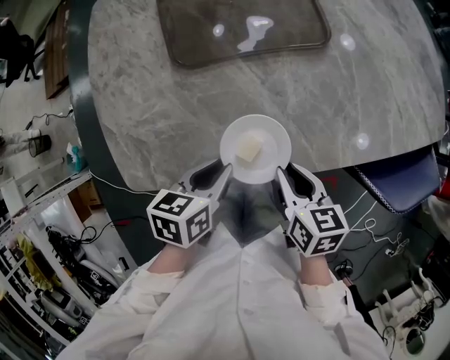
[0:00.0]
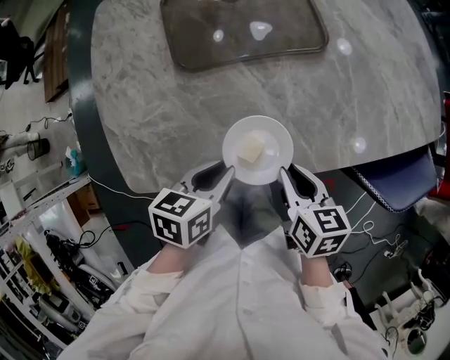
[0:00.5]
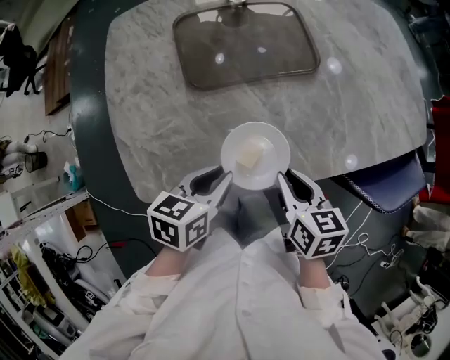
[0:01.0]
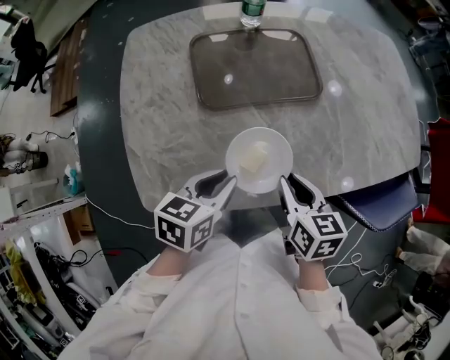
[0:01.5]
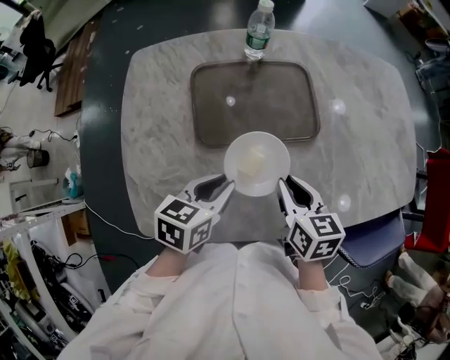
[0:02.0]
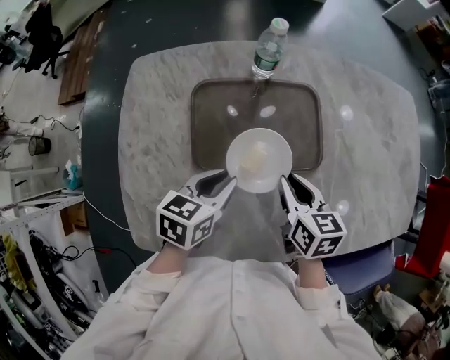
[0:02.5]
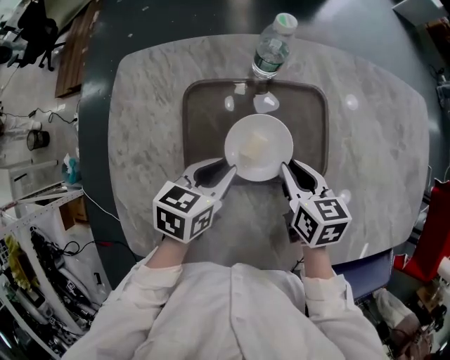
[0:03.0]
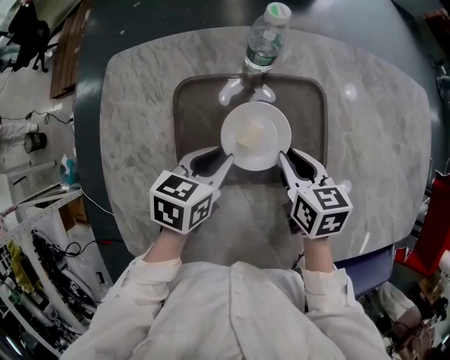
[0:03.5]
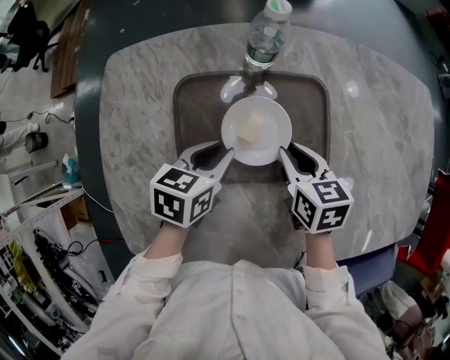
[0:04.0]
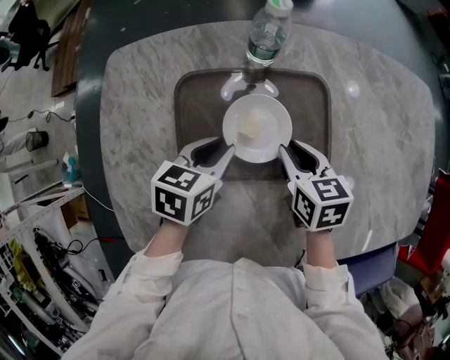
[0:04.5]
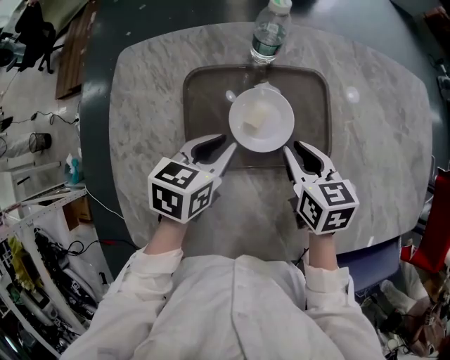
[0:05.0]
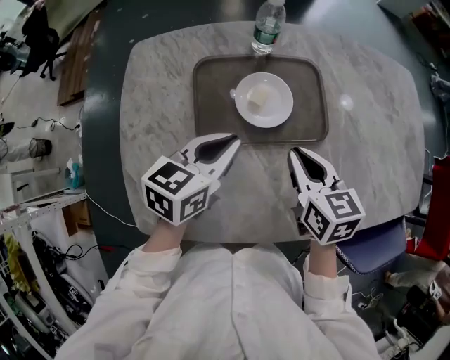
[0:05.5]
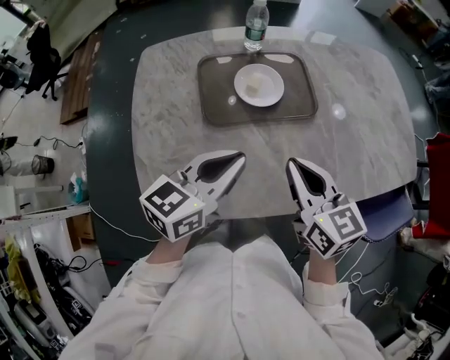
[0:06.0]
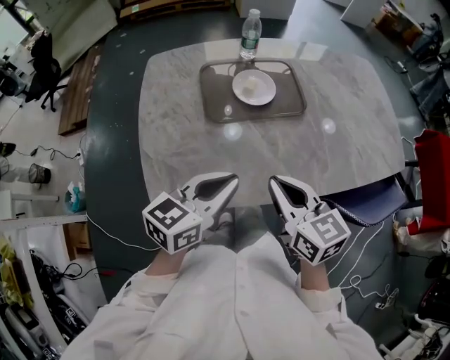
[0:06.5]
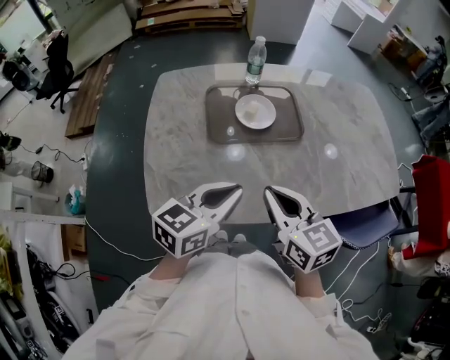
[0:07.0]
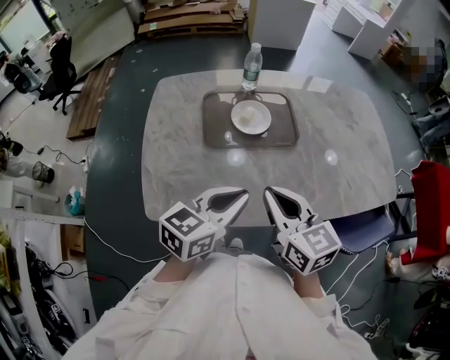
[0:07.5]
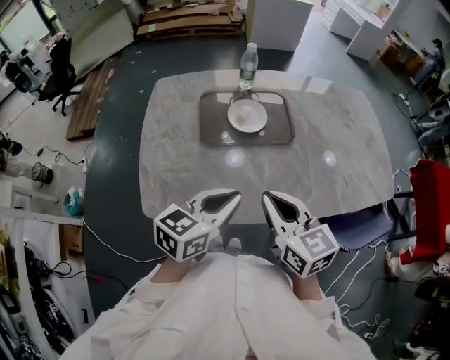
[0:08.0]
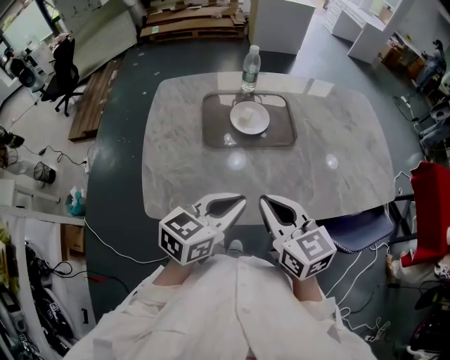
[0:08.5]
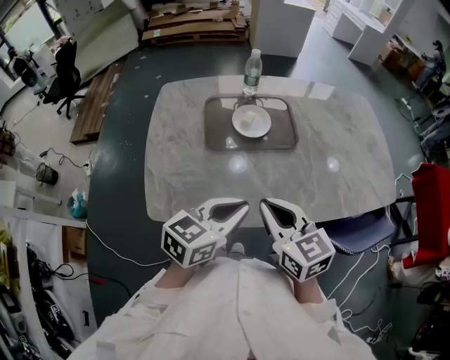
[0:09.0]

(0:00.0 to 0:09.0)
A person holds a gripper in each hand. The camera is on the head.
0:00.0 - 0:02.0: The grippers both shift forward and upward by some 15 cm.
0:02.0 - 0:04.5: The two grippers go about 20 cm forward.
0:04.5 - 0:07.0: The grippers both shift backward and upward by about 35 cm. The left gripper swivels approximately 30 degrees; the right gripper turns by approximately 30 degrees.
0:07.0 - 0:09.0: The left gripper shifts by some 5 cm.

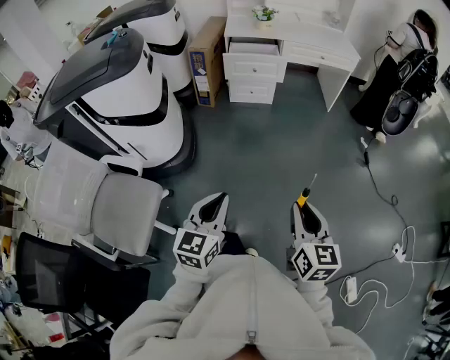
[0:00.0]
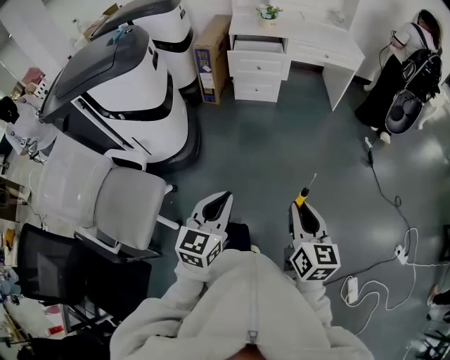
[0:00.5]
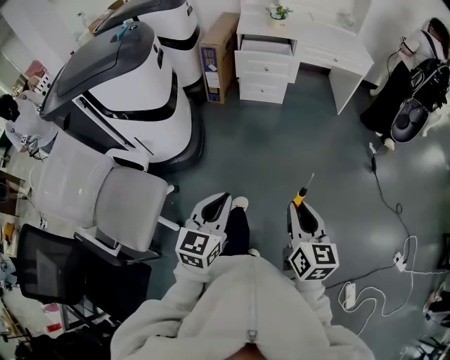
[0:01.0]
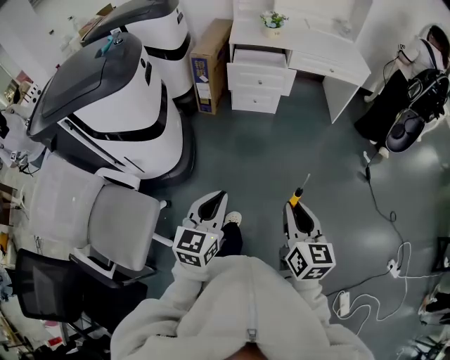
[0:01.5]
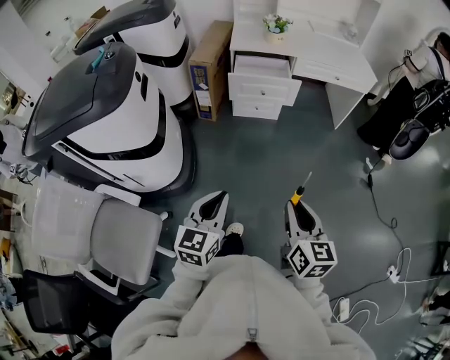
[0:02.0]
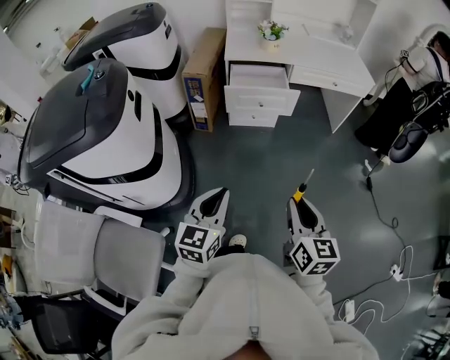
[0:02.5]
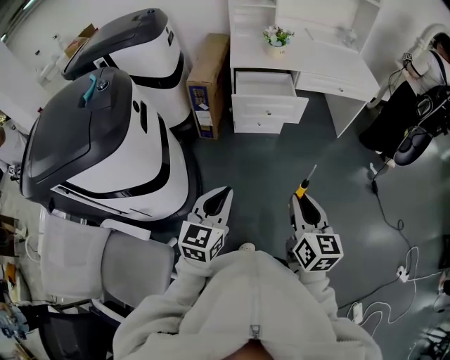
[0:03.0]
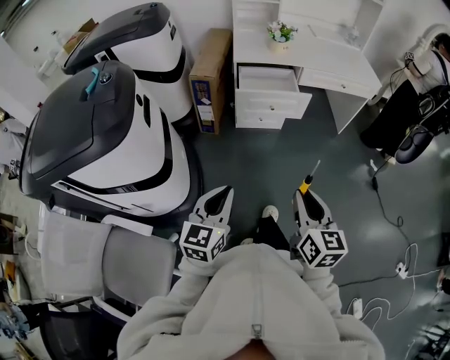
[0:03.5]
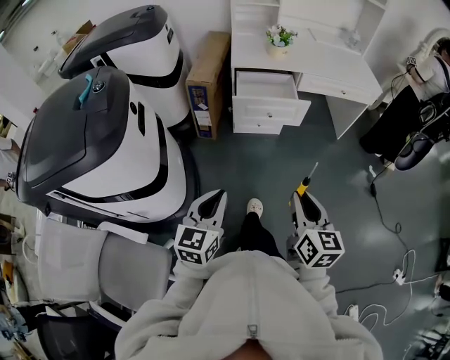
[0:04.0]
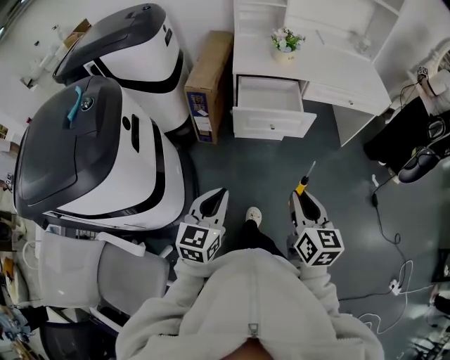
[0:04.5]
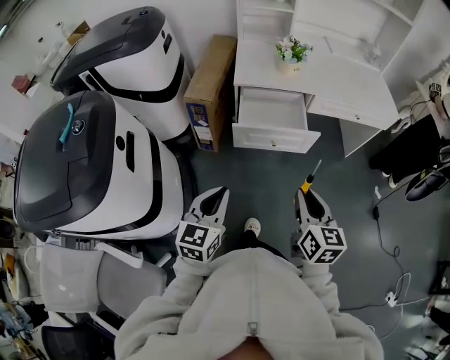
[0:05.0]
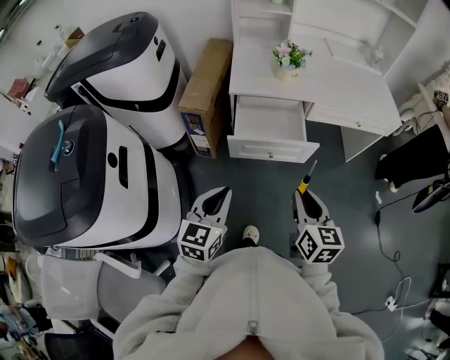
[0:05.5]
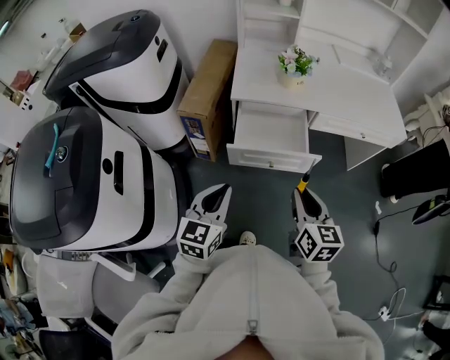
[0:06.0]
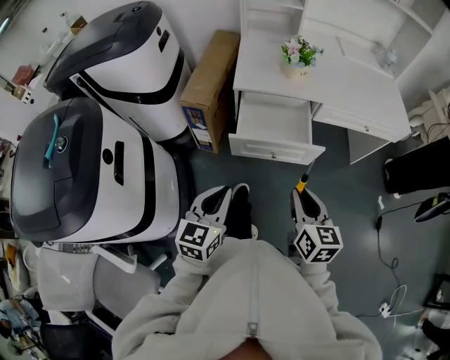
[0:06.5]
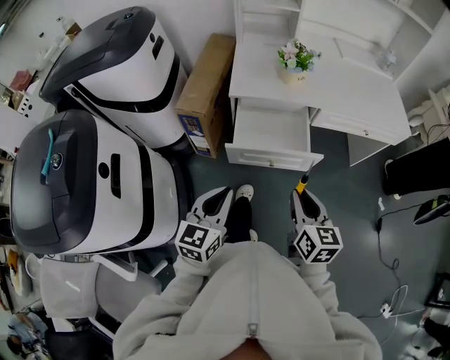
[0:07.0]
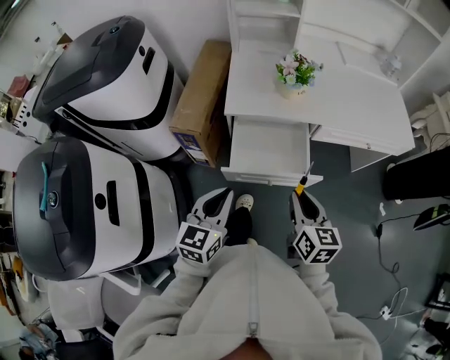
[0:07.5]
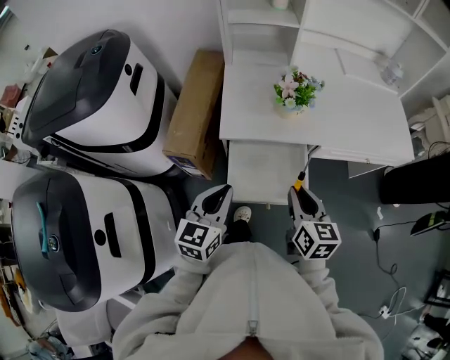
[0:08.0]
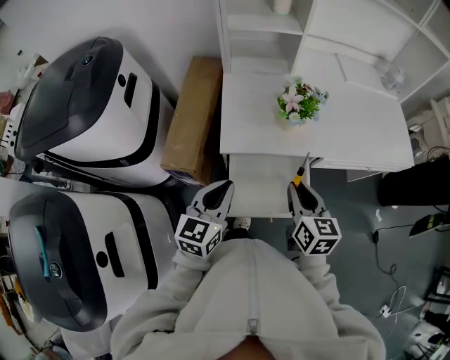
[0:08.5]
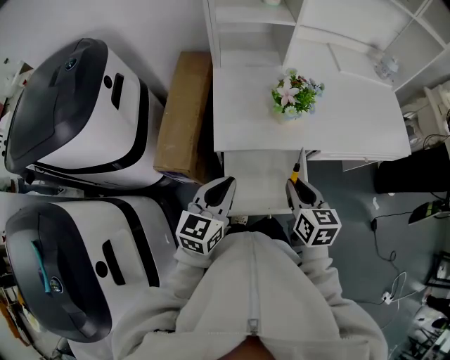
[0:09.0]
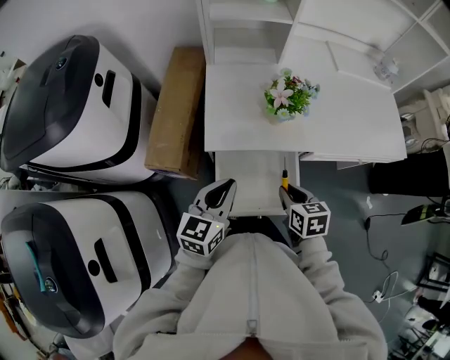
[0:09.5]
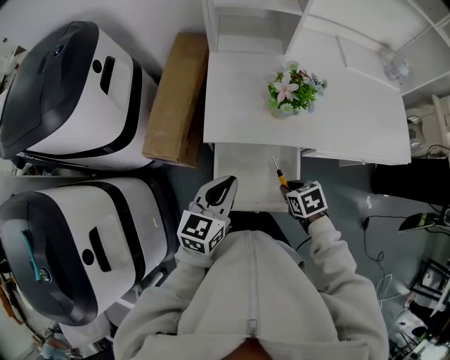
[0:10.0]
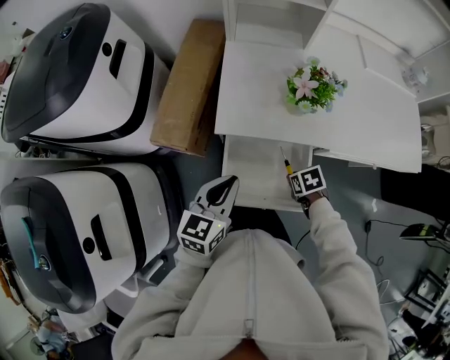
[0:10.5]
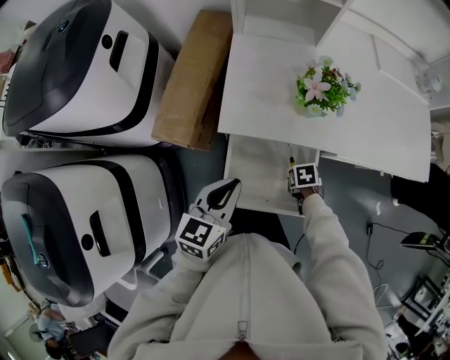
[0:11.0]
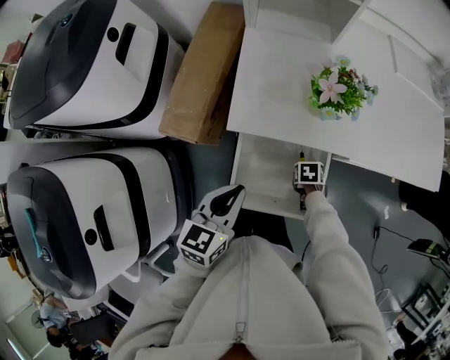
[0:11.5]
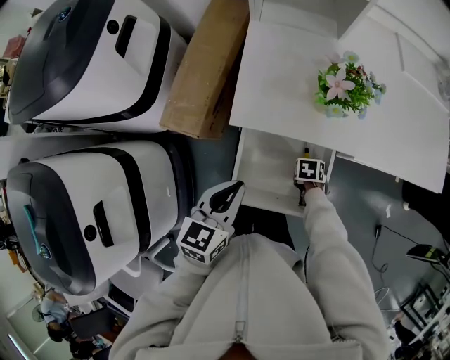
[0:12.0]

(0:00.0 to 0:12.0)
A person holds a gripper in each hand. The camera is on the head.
0:00.0 - 0:02.0: The two grippers go roughly 20 cm forward.
0:02.0 - 0:04.0: Both grippers travel together forward and to the left, about 15 cm.
0:04.0 - 0:06.0: Both grippers move forward, approximately 30 cm.
0:06.0 - 0:08.0: The grippers both shift forward by about 20 cm.
0:08.0 - 0:10.0: The right gripper goes some 15 cm downward, and points its fingers roughly 40 degrees further downward. The left gripper goes approximately 10 cm forward.
0:10.0 - 0:12.0: The right gripper shifts roughly 15 cm downward, and turns by roughly 30 degrees.

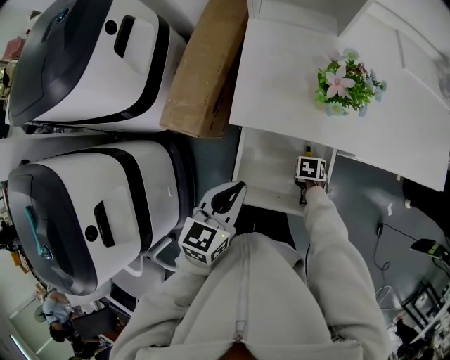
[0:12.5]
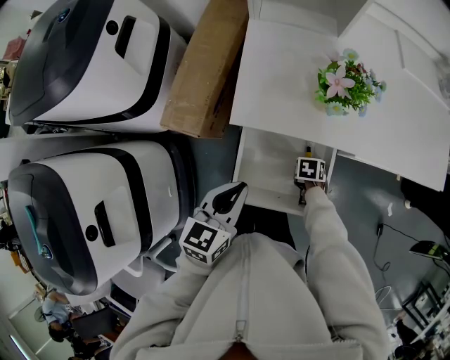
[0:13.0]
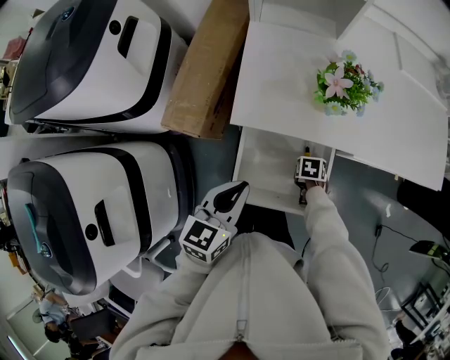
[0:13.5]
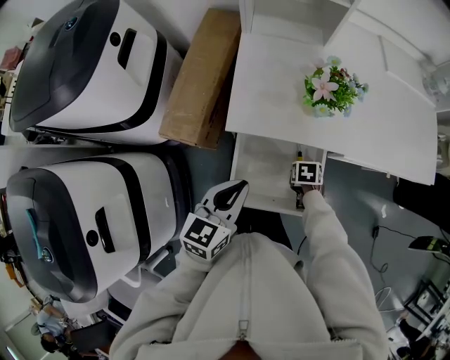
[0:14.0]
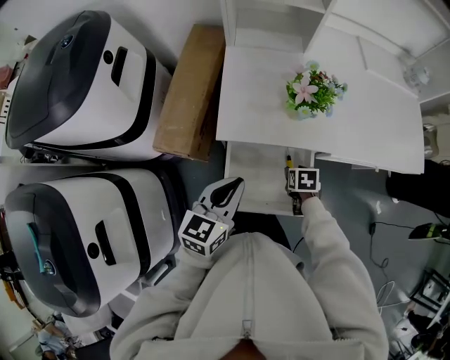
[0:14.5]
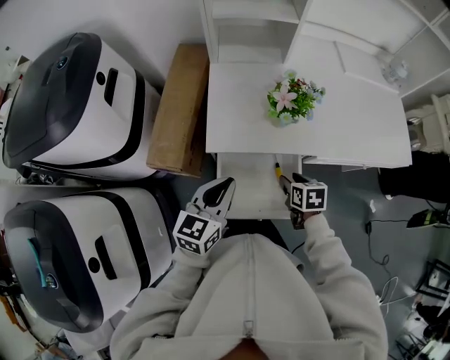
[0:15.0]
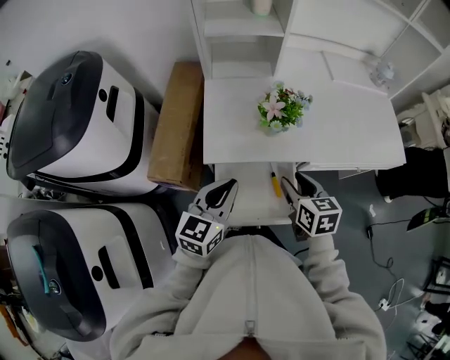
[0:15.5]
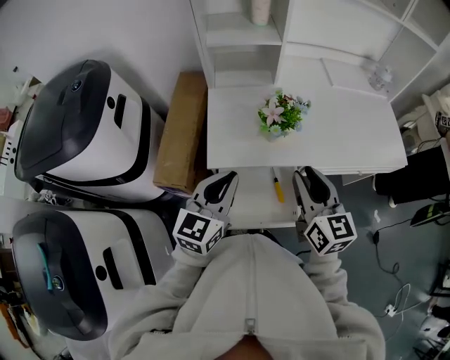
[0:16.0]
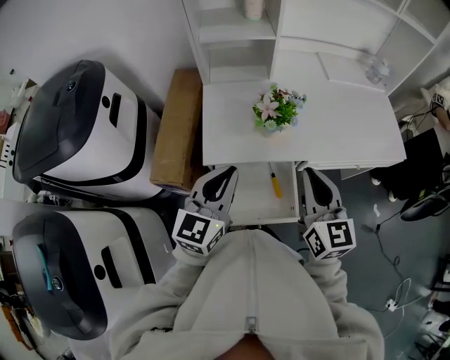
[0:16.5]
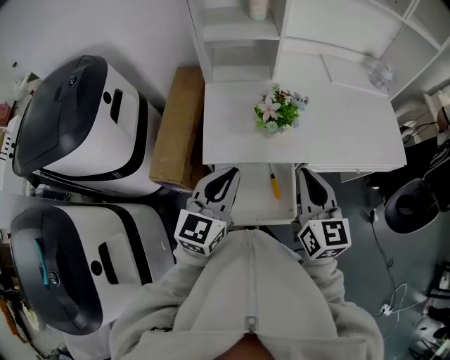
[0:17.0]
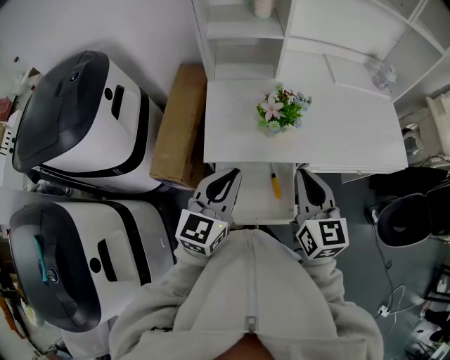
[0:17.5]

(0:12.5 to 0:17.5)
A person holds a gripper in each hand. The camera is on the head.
0:12.5 - 0:15.0: The left gripper travels upward by about 5 cm, while the right gripper is displaced upward by some 20 cm, turns by approximately 30 degrees, and opens up.
0:15.0 - 0:17.5: The left gripper moves upward, roughly 10 cm. The right gripper heads upward, covering some 25 cm, points its fingers roughly 40 degrees further upward, and closes its fingers.

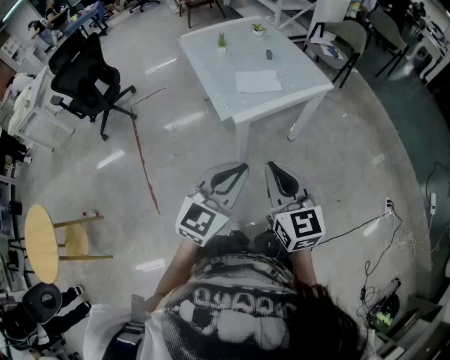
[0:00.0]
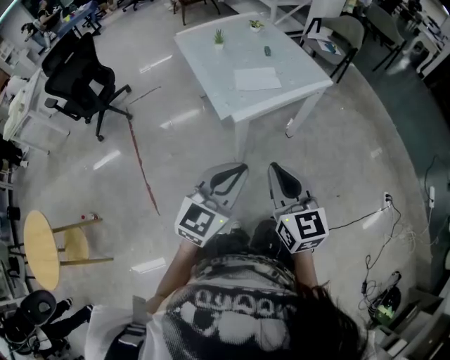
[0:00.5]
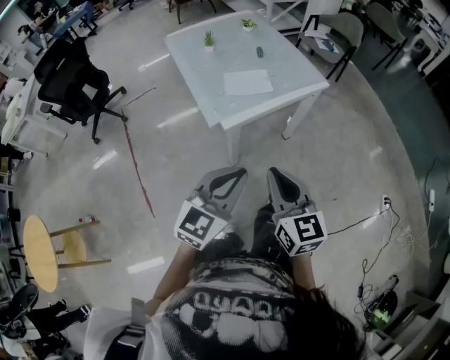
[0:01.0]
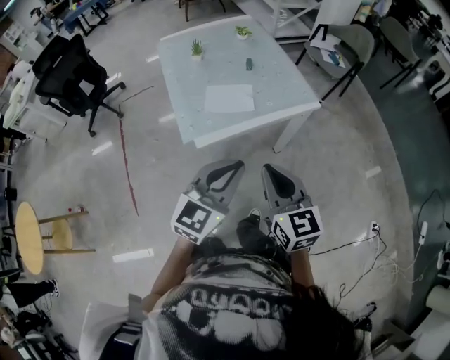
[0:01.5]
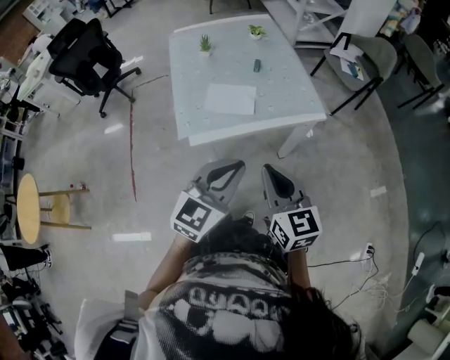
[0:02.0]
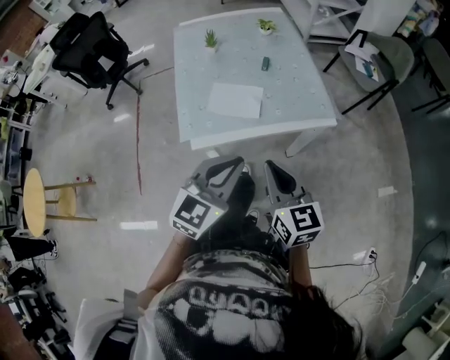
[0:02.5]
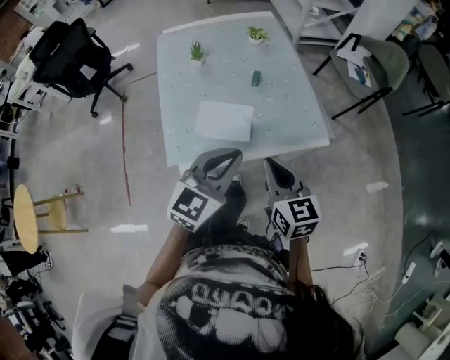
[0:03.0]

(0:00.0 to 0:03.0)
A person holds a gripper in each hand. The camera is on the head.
0:00.0 - 0:01.5: The two grippers go some 25 cm forward and to the right.
0:01.5 - 0:03.0: Both grippers travel together forward, some 20 cm.
